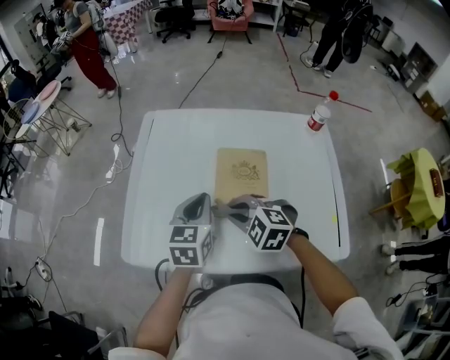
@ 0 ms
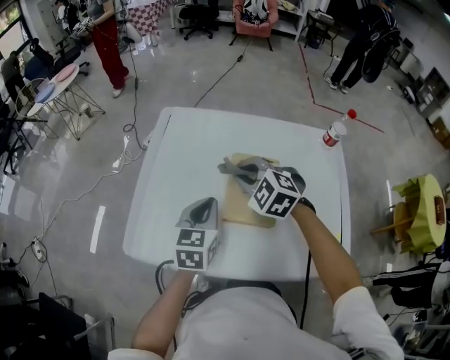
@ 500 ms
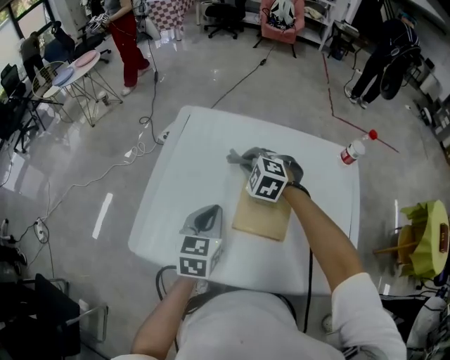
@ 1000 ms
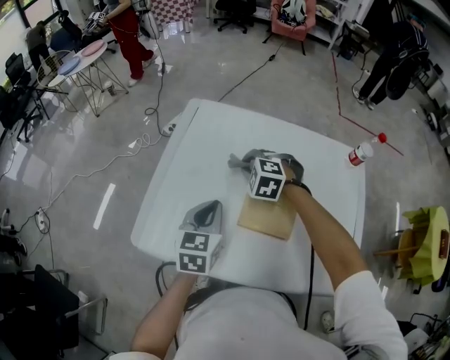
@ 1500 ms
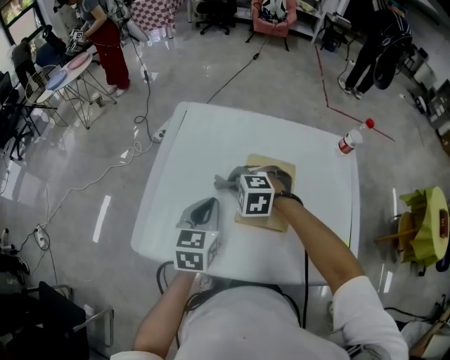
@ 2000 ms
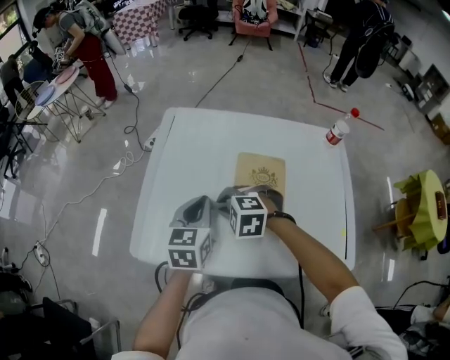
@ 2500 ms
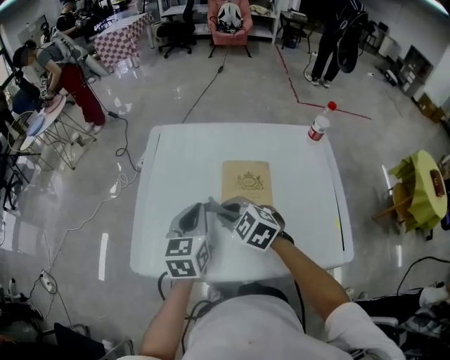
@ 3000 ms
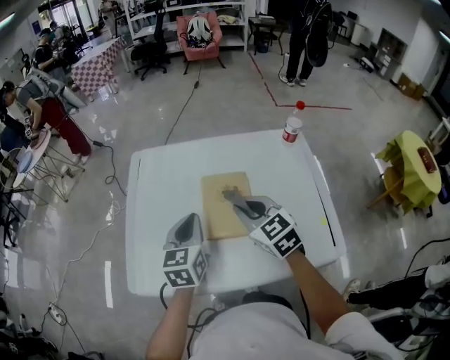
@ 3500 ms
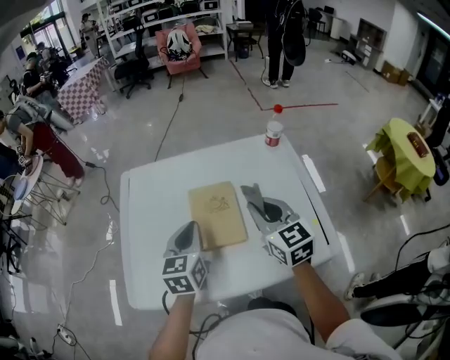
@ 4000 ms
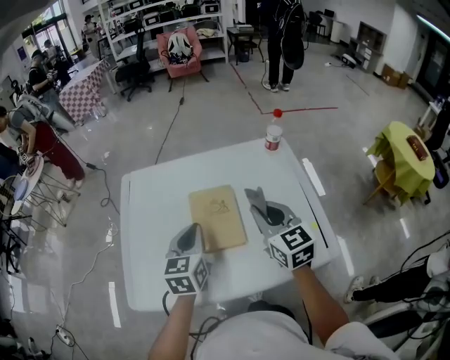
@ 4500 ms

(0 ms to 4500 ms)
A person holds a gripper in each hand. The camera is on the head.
0 ms - 2000 ms: The left gripper is displaced to the left by some 5 cm. The right gripper moves forward, roughly 10 cm, and rotates roughly 20 degrees.
2000 ms - 4500 ms: The left gripper moves roughly 15 cm, while the right gripper changes place by about 30 cm, and tilts its fingers about 50 degrees upward.

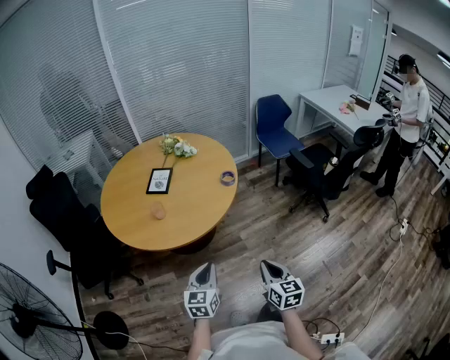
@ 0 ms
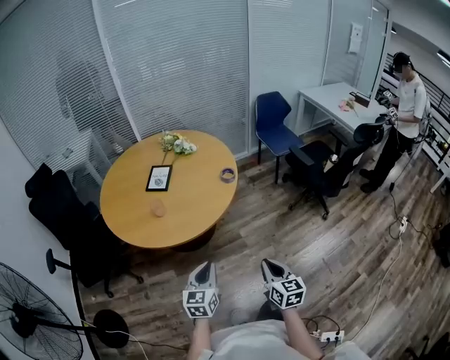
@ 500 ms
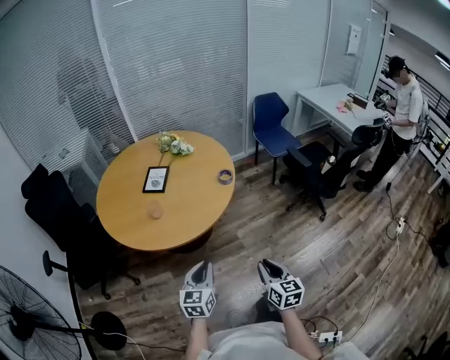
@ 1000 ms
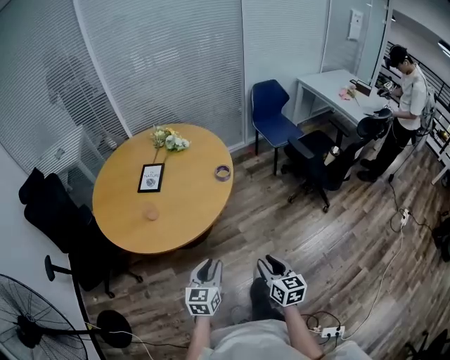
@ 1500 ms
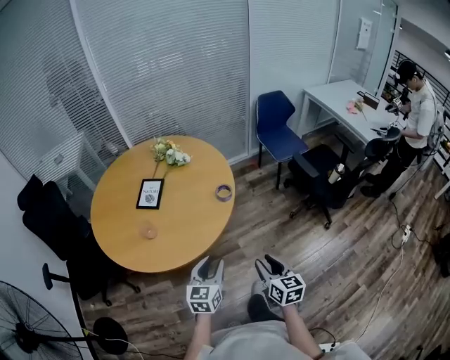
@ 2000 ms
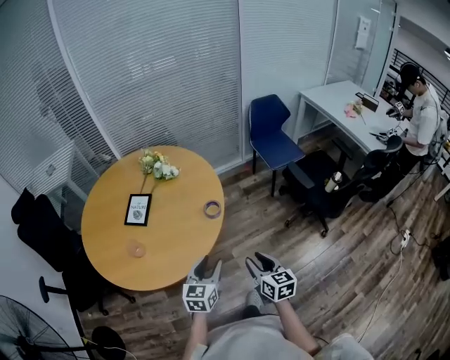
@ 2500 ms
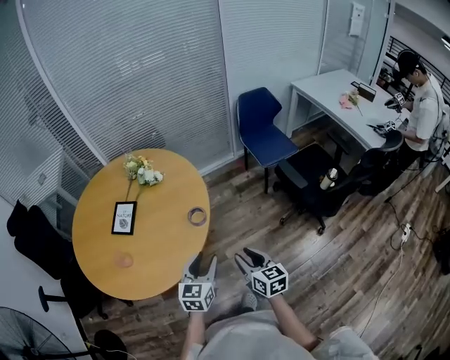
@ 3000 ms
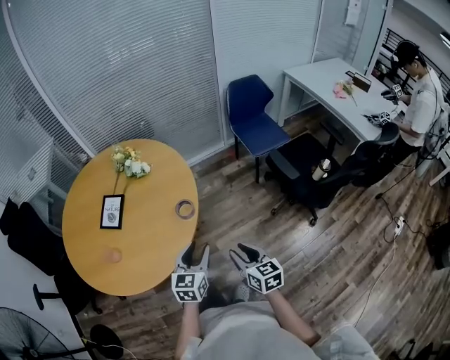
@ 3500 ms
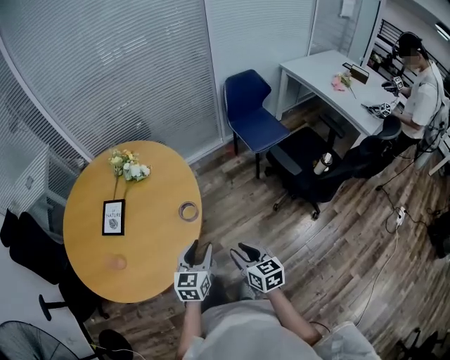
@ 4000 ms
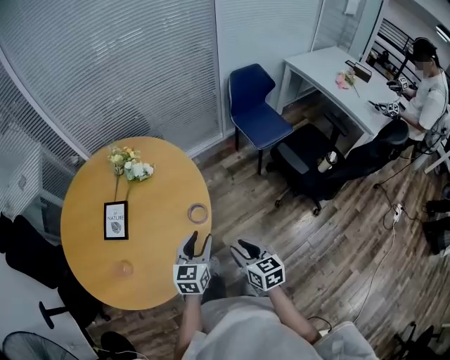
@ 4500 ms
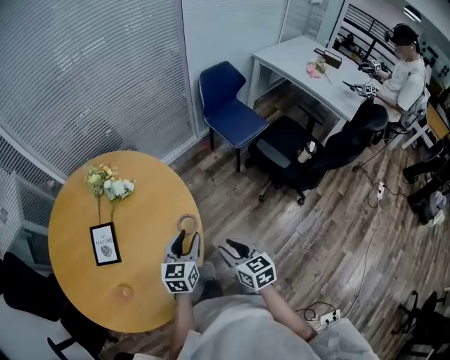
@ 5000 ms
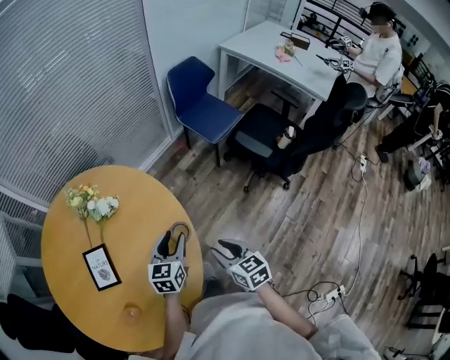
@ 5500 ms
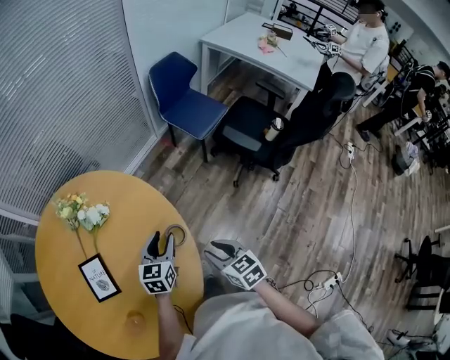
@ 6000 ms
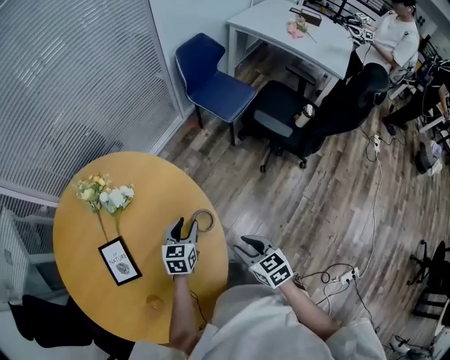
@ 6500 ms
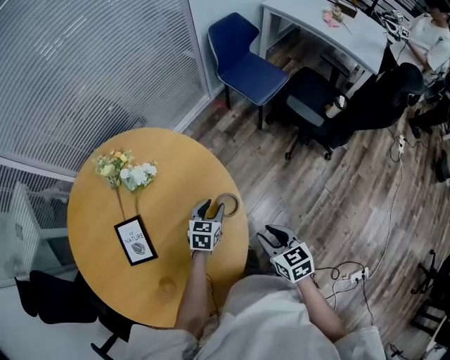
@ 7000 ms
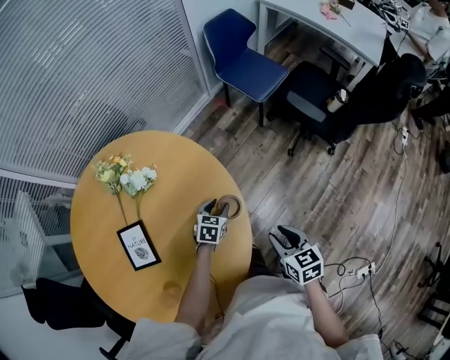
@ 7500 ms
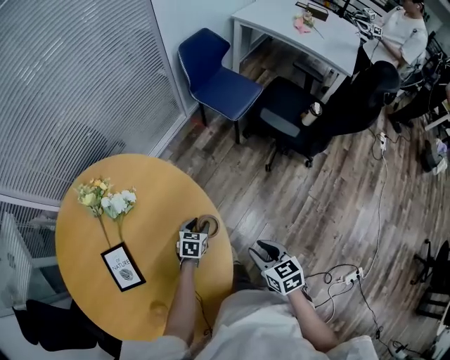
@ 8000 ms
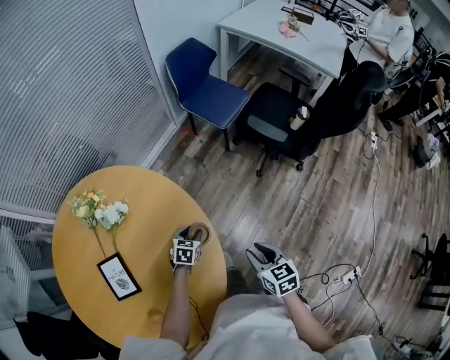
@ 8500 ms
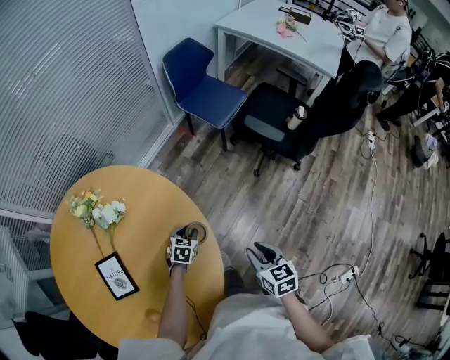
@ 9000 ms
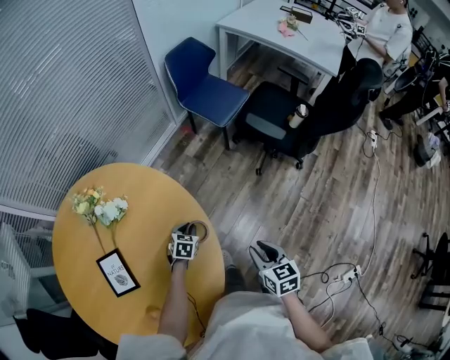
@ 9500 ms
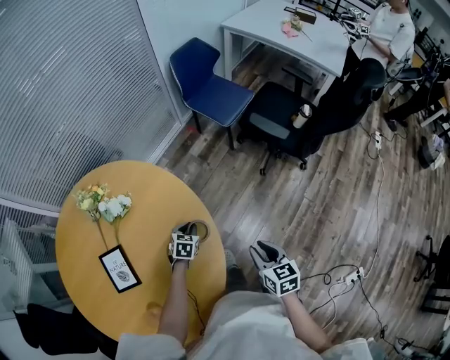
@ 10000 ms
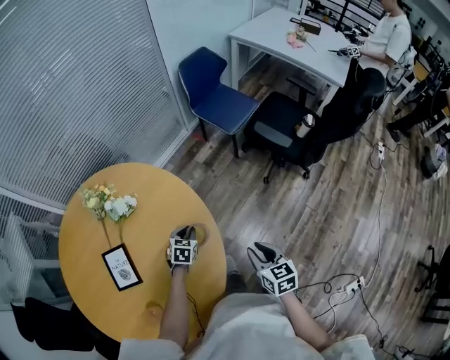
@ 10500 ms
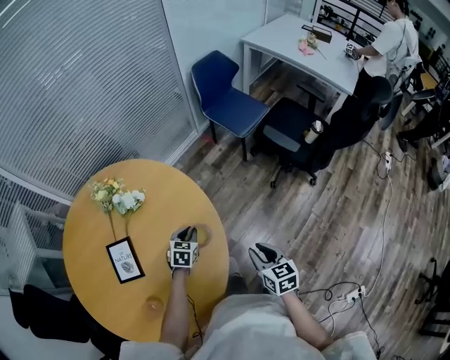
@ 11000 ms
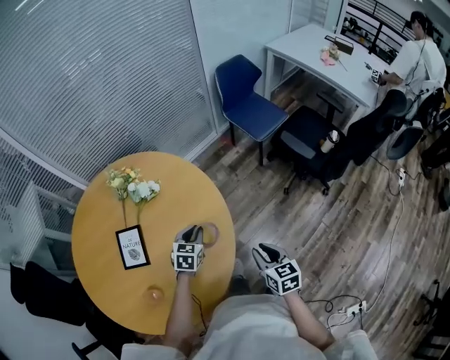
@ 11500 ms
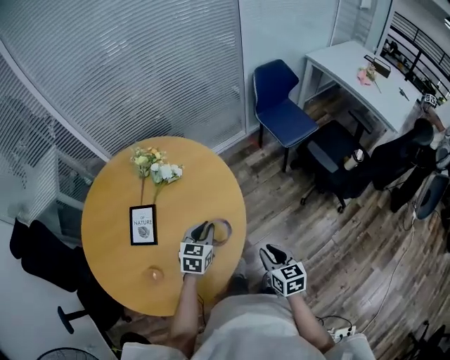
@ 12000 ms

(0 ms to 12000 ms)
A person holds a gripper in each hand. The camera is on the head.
0 ms - 2000 ms: Both grippers travel together forward, some 15 cm. The right gripper opens, while the left gripper opens.
2000 ms - 4000 ms: Both grippers travel together forward and to the right, approximately 25 cm.
4000 ms - 6000 ms: The grippers both shift forward and to the left by about 20 cm. The left gripper turns by some 20 degrees.
6000 ms - 8000 ms: The right gripper shifts by approximately 5 cm; the left gripper moves downward, roughly 20 cm, and rotates approximately 30 degrees.
8000 ms - 10000 ms: The left gripper closes its fingers.
10000 ms - 12000 ms: The left gripper heads upward and backward, covering roughly 20 cm, and swivels about 30 degrees; the right gripper changes its angle by about 20 degrees.

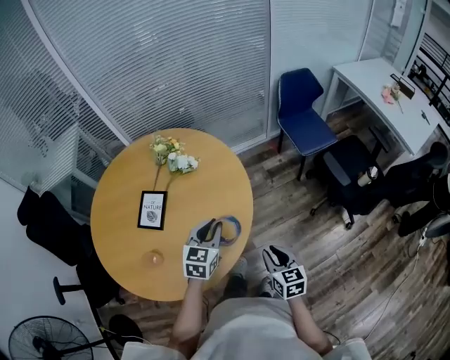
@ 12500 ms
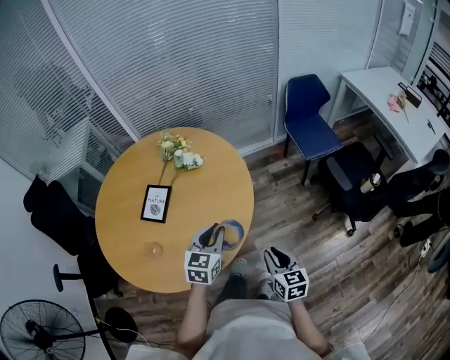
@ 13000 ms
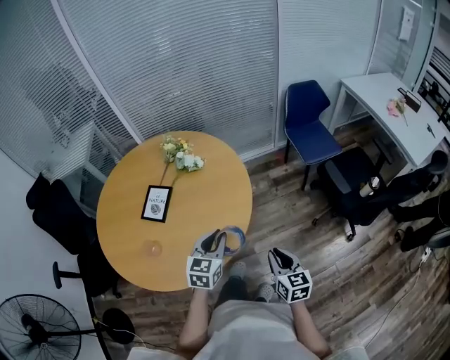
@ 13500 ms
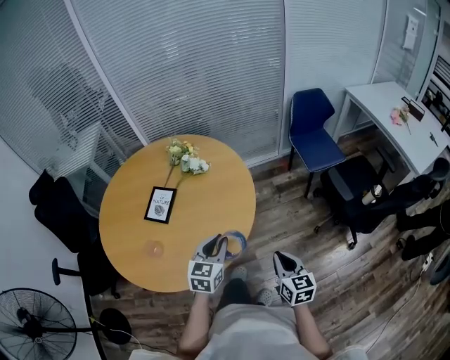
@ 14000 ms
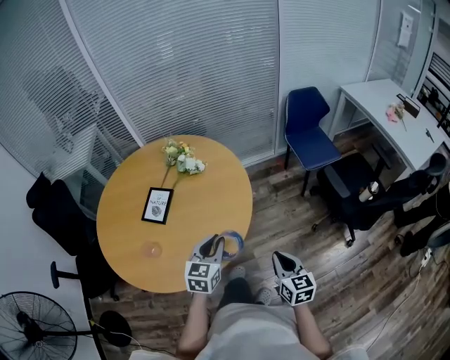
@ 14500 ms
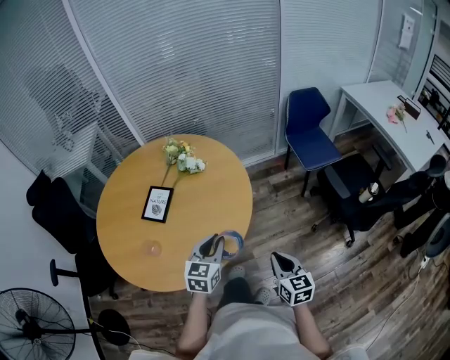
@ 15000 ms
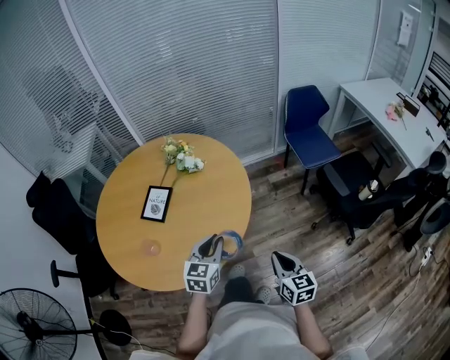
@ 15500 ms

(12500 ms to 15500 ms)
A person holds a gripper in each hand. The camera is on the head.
12500 ms - 14000 ms: The right gripper moves roughly 5 cm, and closes its fingers; the left gripper heads backward, covering some 10 cm.
14000 ms - 15500 ms: The grippers stay close to where they were, moving slightly.

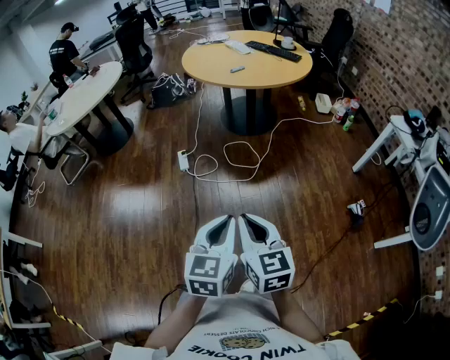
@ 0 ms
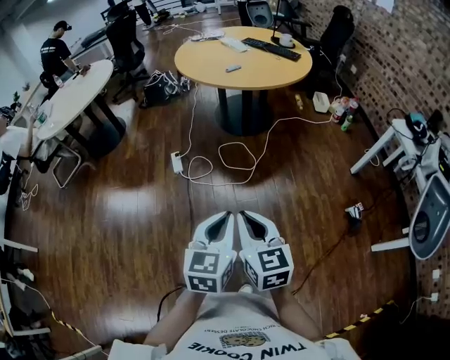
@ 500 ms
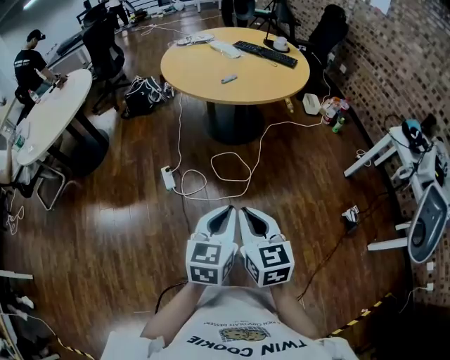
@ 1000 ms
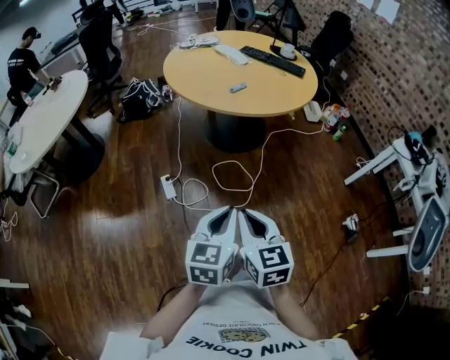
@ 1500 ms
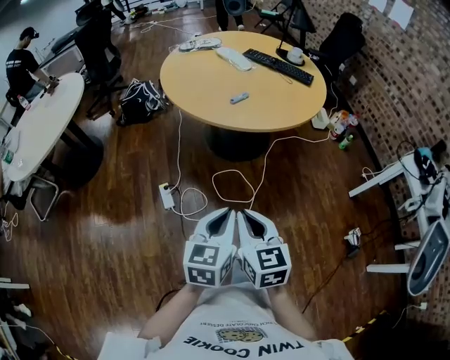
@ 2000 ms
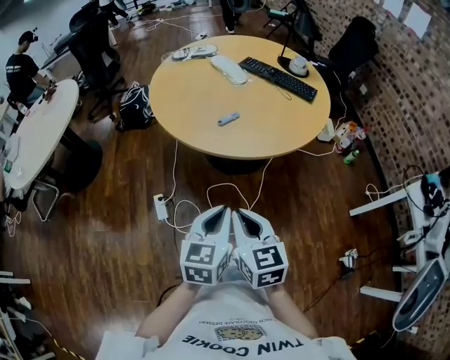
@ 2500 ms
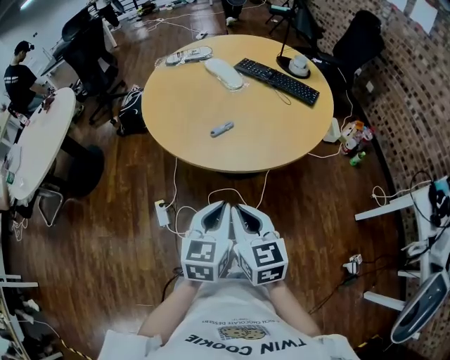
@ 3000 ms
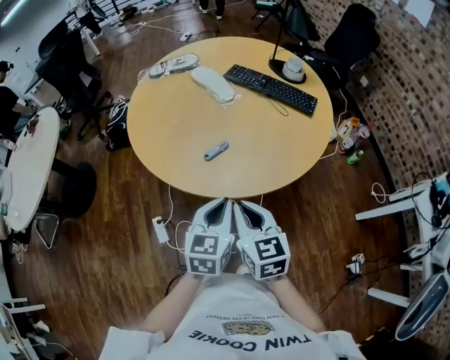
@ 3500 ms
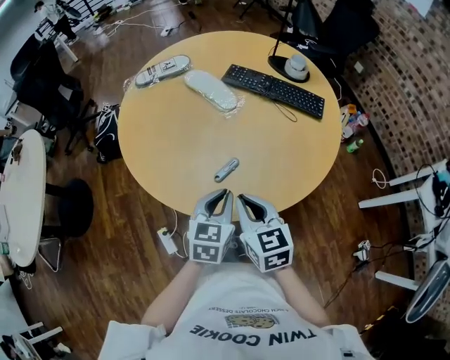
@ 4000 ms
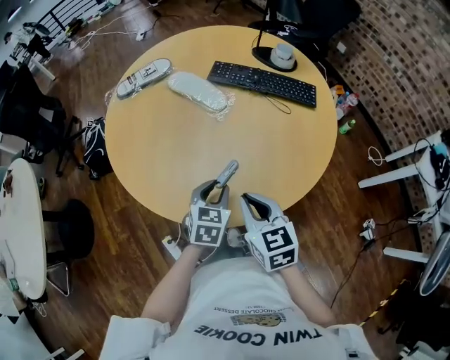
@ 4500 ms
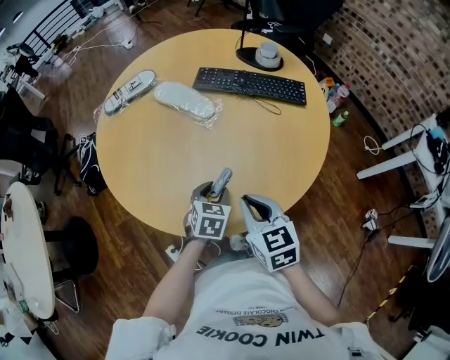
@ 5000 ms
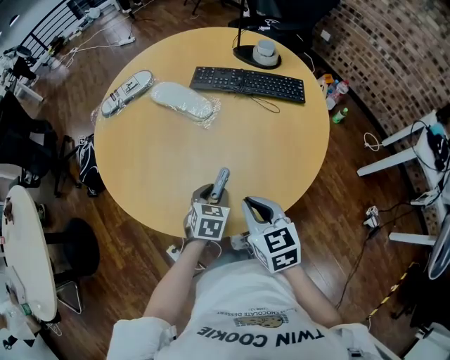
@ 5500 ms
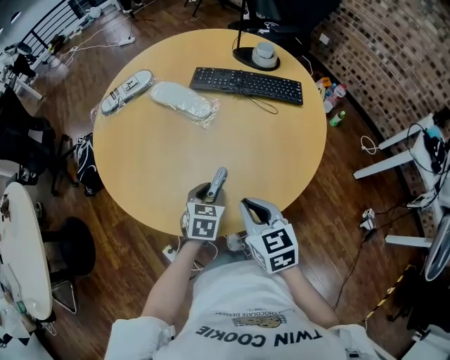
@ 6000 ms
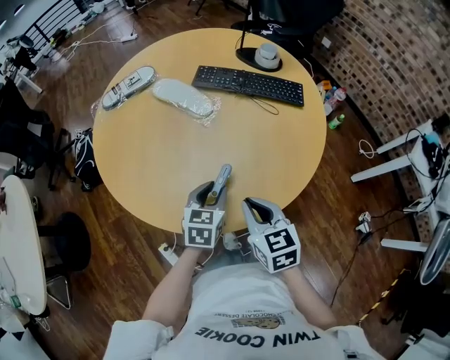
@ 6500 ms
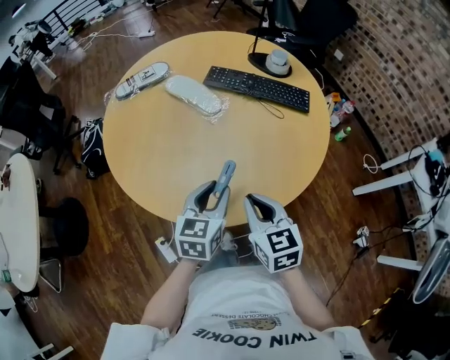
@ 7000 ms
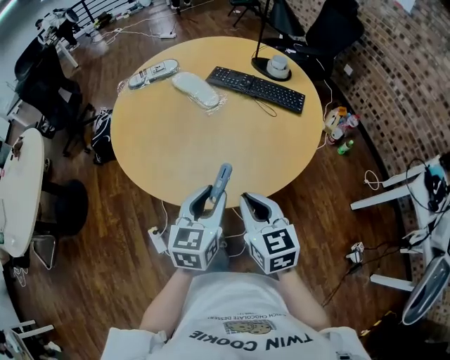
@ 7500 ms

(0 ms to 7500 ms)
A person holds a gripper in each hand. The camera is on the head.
0 ms - 2000 ms: Both grippers are carried forward, approximately 50 cm.
2000 ms - 4000 ms: The two grippers travel together, forward, some 50 cm.
4000 ms - 5500 ms: The right gripper ends up approximately 5 cm from where it was. The left gripper moves downward and forward, about 15 cm, turns by approximately 20 degrees, and opens its fingers.
5500 ms - 7500 ms: The left gripper heads upward and backward, covering roughly 25 cm, and swivels about 30 degrees. Meanwhile the right gripper heads backward, to the right and upward, covering some 15 cm.
